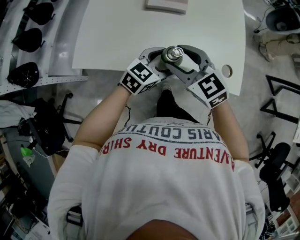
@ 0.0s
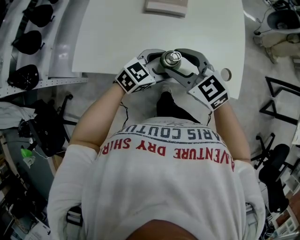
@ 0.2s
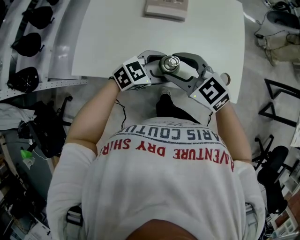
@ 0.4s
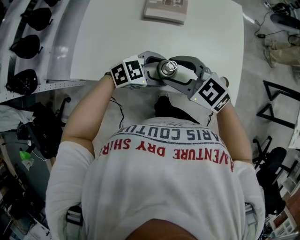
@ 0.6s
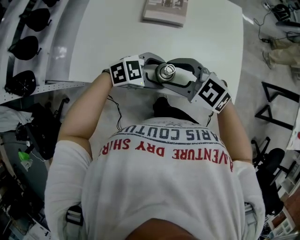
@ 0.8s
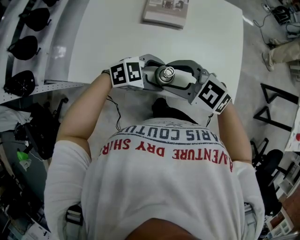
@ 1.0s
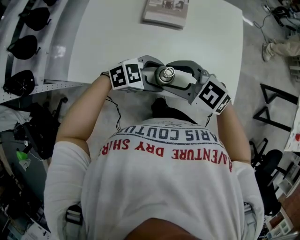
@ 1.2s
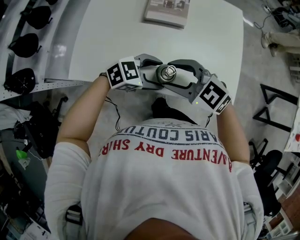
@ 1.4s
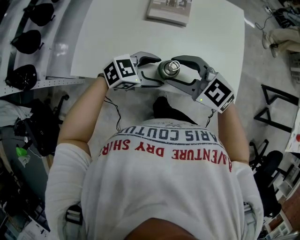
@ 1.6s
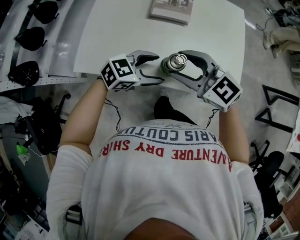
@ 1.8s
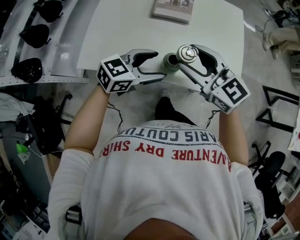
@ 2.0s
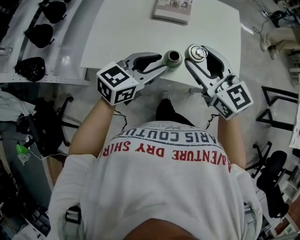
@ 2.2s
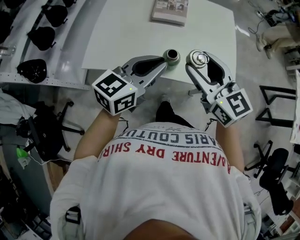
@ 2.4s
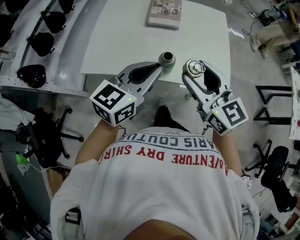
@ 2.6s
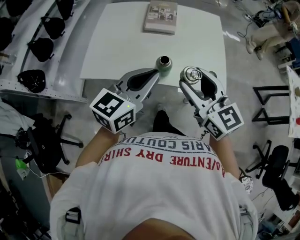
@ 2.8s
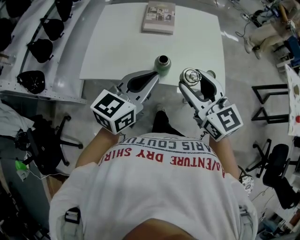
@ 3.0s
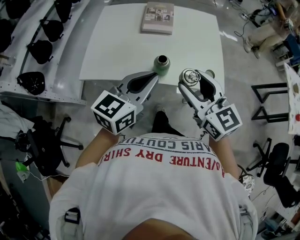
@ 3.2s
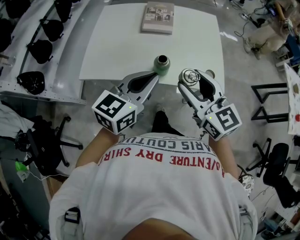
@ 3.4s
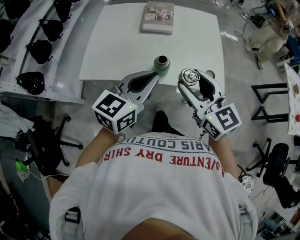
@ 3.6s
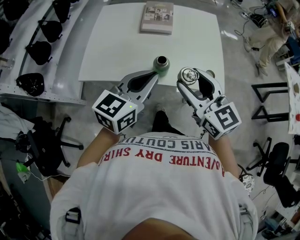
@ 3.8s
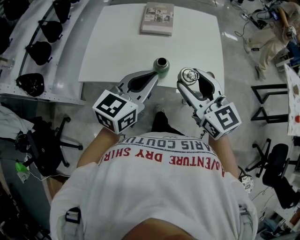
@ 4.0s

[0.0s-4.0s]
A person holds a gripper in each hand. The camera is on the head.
0.0s to 1.4s: The left gripper rotates some 30 degrees. Meanwhile the right gripper rotates approximately 20 degrees.
1.4s to 2.6s: The two grippers go roughly 15 cm upward. The right gripper turns by about 40 degrees. The left gripper turns by roughly 50 degrees, and closes up.
2.6s to 4.0s: The grippers make only small movements.

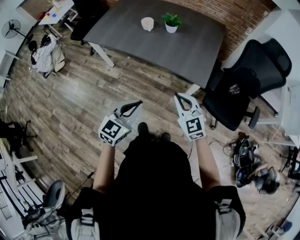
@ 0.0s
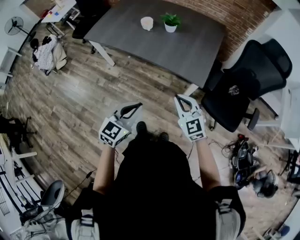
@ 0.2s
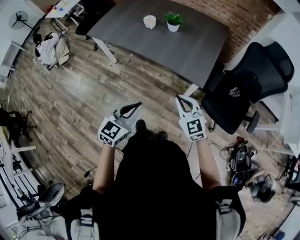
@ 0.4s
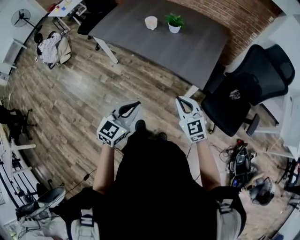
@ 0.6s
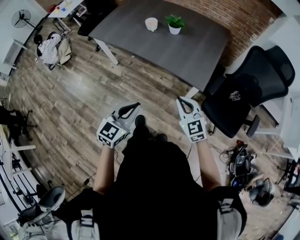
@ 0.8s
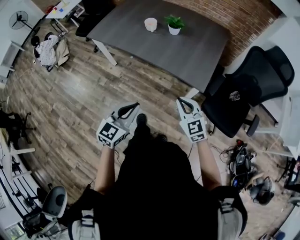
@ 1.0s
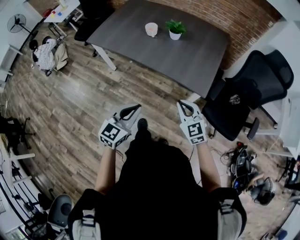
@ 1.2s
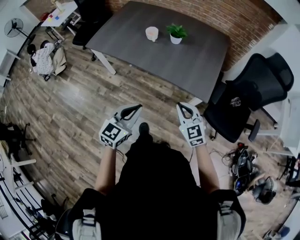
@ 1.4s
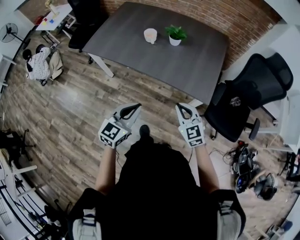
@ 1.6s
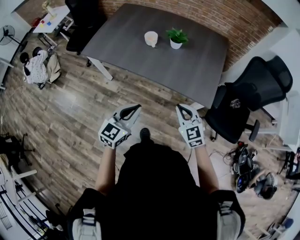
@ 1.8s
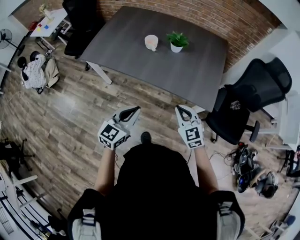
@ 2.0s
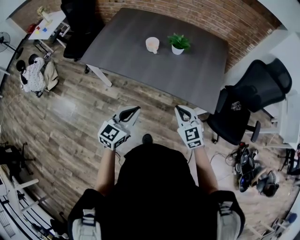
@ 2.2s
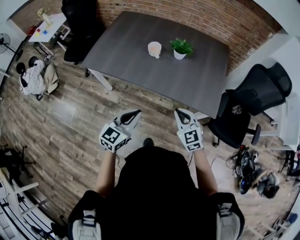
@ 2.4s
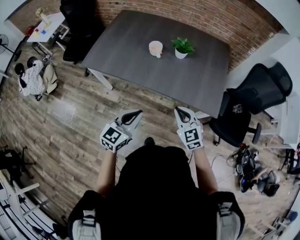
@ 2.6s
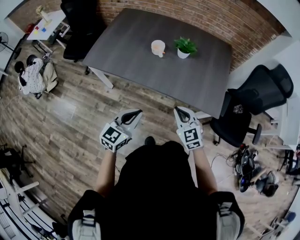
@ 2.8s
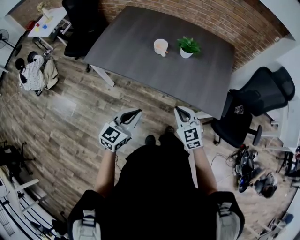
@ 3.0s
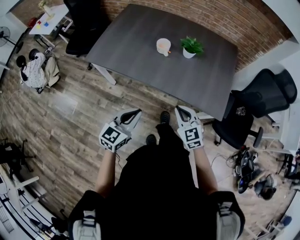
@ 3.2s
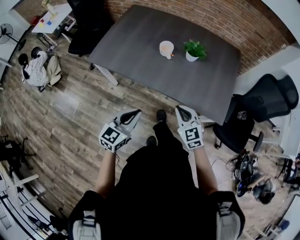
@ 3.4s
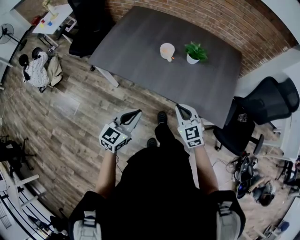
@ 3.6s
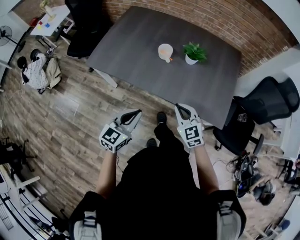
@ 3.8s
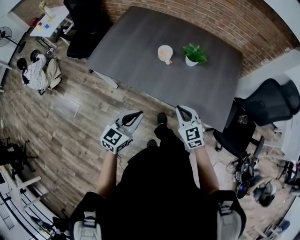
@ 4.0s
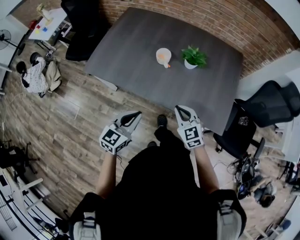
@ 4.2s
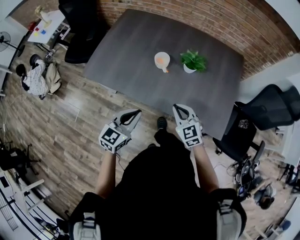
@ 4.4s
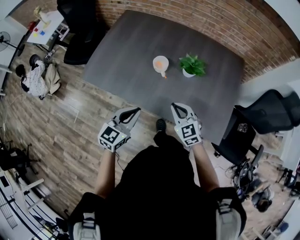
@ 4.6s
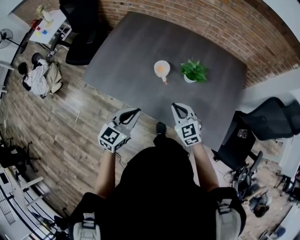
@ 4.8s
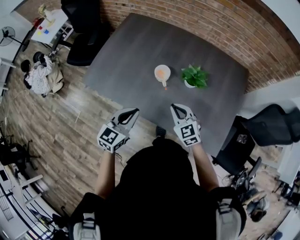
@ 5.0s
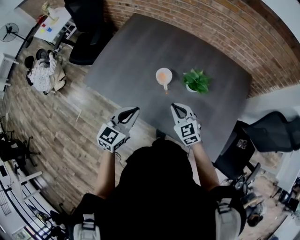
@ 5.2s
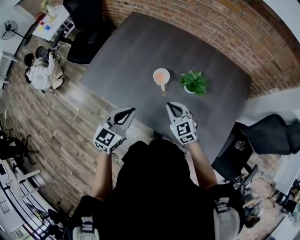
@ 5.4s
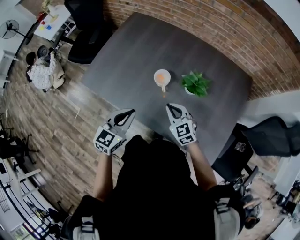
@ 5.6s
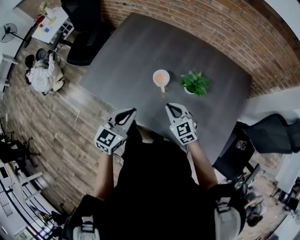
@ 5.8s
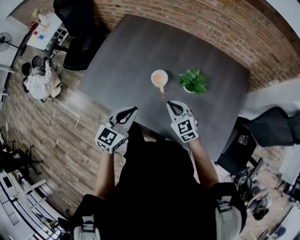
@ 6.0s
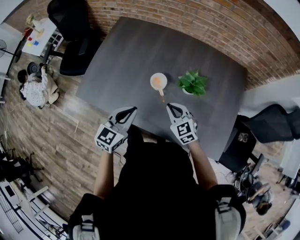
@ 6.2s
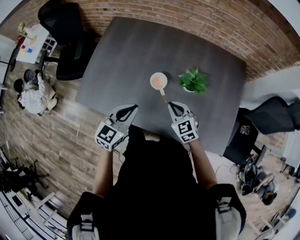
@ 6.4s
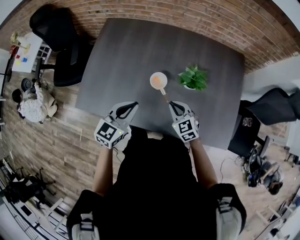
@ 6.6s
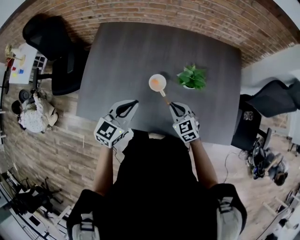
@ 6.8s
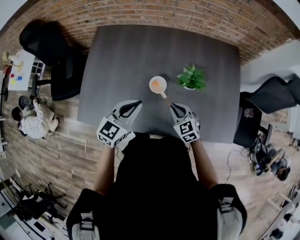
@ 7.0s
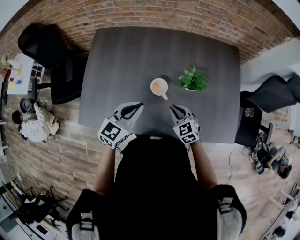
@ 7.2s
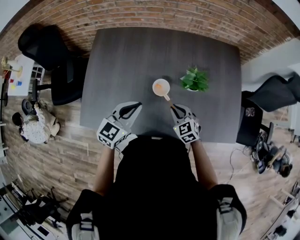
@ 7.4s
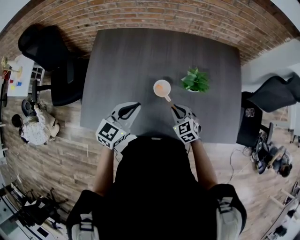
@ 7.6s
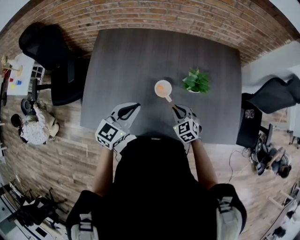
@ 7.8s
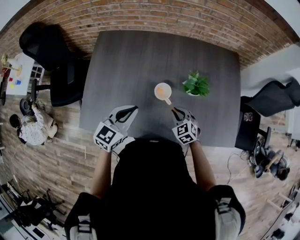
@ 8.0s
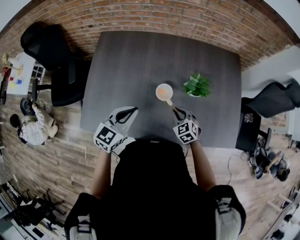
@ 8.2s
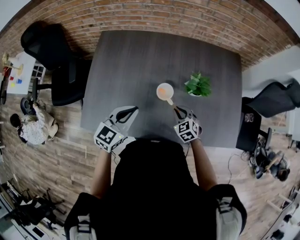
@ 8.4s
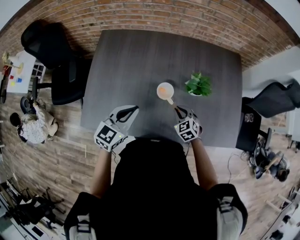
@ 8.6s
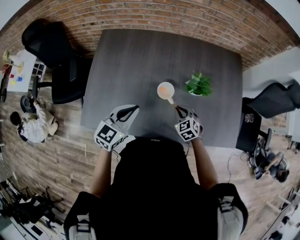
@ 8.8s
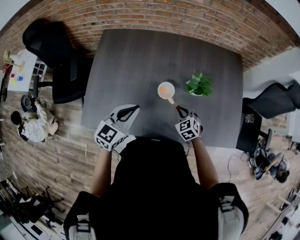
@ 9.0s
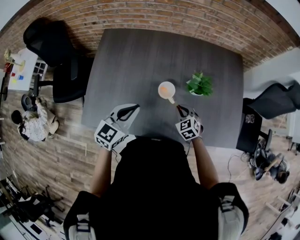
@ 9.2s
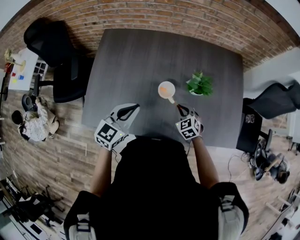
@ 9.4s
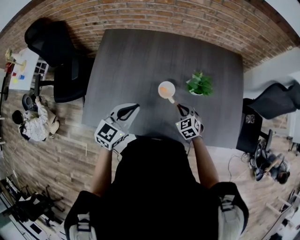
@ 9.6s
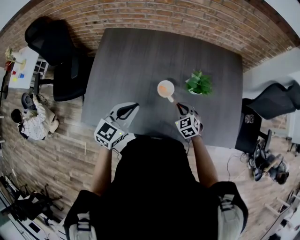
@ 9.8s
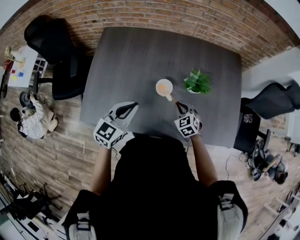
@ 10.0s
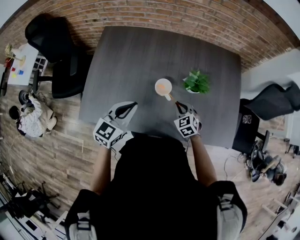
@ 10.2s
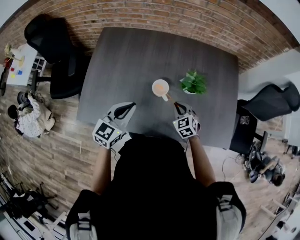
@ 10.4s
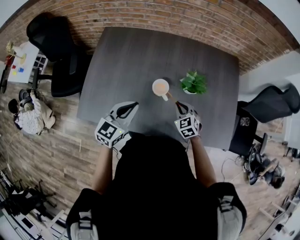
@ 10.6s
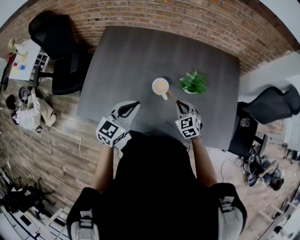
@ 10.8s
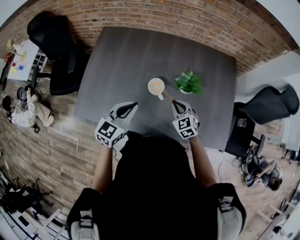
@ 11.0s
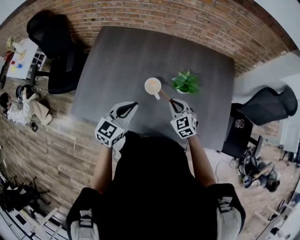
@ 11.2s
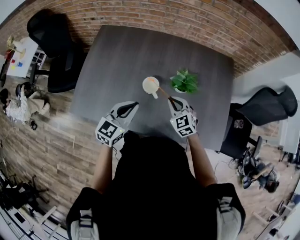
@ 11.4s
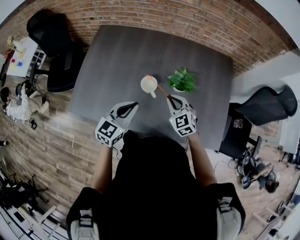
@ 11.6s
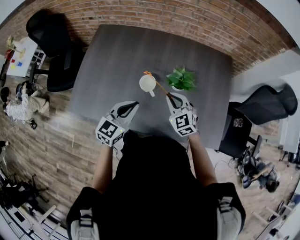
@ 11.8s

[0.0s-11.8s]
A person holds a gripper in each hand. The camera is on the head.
0.0s to 1.4s: The right gripper shifts by about 5 cm. The left gripper is displaced forward by roughly 5 cm.
1.4s to 3.0s: The two grippers go approximately 20 cm to the left and forward.
3.0s to 4.4s: Both grippers travel together forward, approximately 15 cm.
4.4s to 6.0s: The grippers both shift forward by roughly 15 cm.
6.0s to 7.4s: The right gripper changes place by about 5 cm, and rotates some 20 degrees; the left gripper goes approximately 15 cm forward and to the left, and rotates about 20 degrees.
7.4s to 10.4s: The grippers stay close to where they were, moving slightly.
10.4s to 11.8s: The left gripper shifts roughly 10 cm to the right; the right gripper shifts some 10 cm upward.

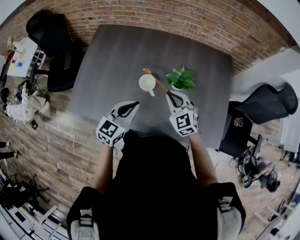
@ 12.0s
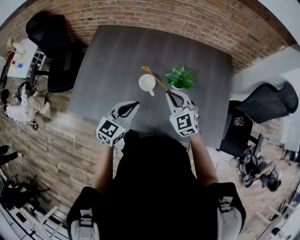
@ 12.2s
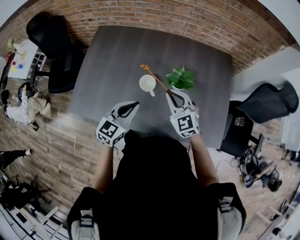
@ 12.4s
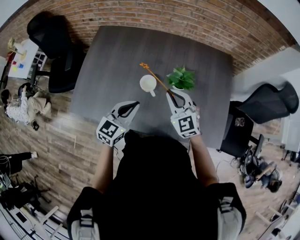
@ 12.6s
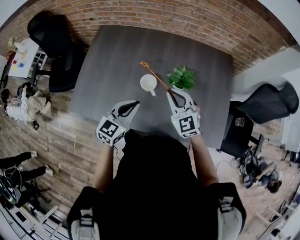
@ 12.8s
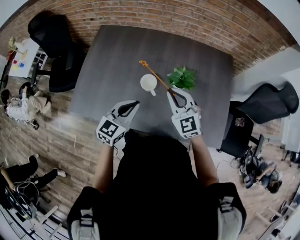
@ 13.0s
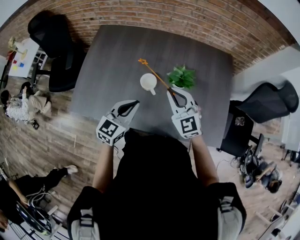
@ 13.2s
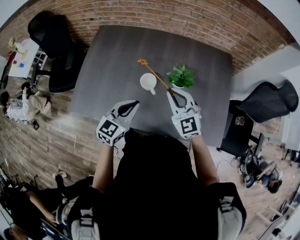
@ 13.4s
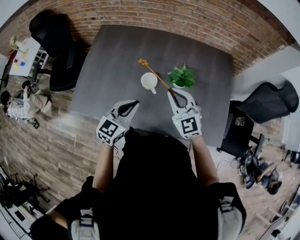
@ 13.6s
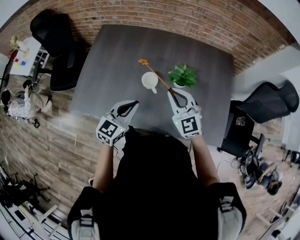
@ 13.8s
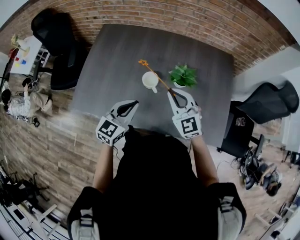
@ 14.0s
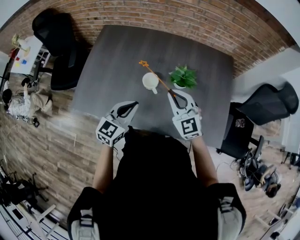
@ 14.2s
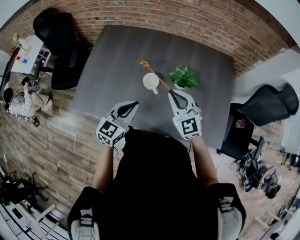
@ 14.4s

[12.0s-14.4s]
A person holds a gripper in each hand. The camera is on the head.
12.0s to 13.2s: The right gripper moves upward, roughly 5 cm.
13.2s to 14.4s: There are only small adjustments of the grippers.

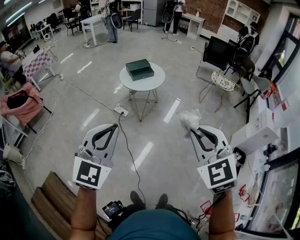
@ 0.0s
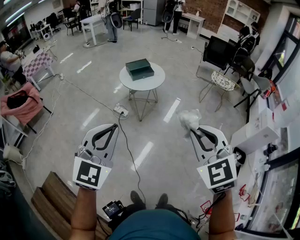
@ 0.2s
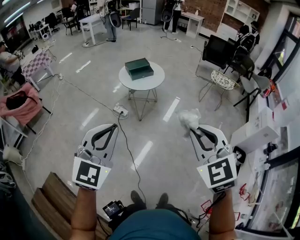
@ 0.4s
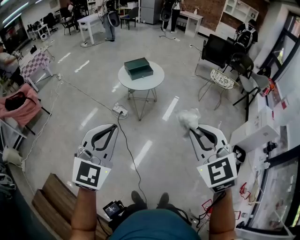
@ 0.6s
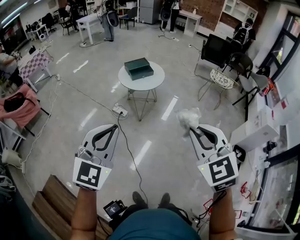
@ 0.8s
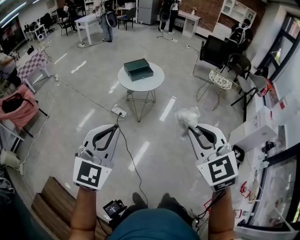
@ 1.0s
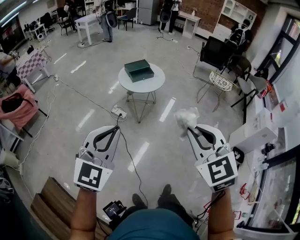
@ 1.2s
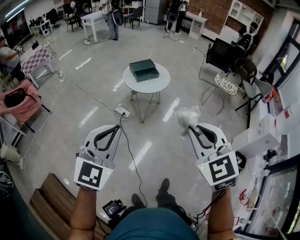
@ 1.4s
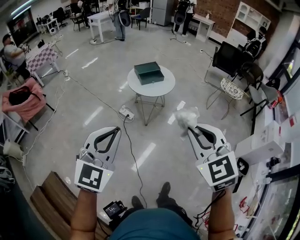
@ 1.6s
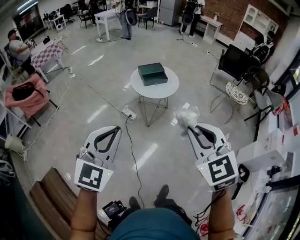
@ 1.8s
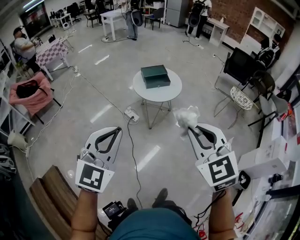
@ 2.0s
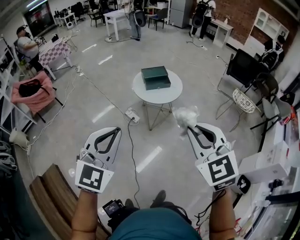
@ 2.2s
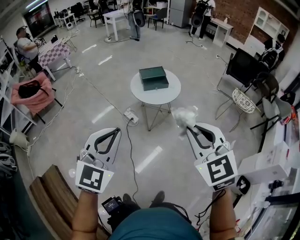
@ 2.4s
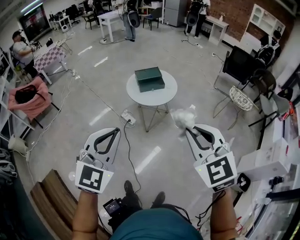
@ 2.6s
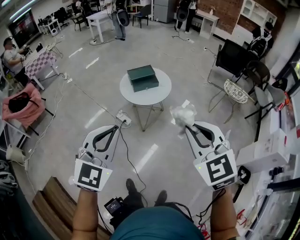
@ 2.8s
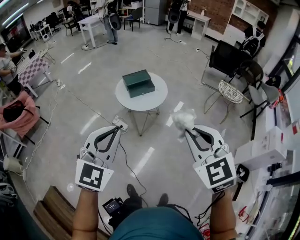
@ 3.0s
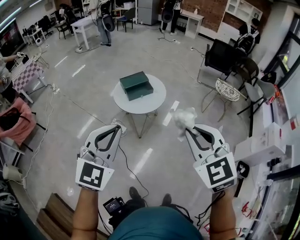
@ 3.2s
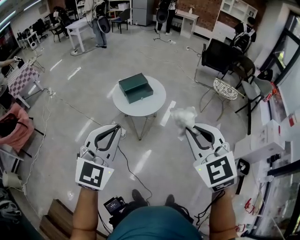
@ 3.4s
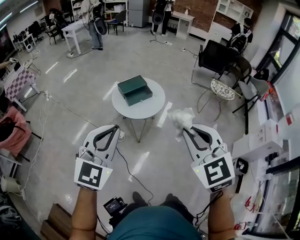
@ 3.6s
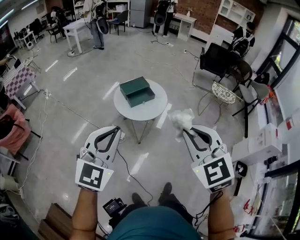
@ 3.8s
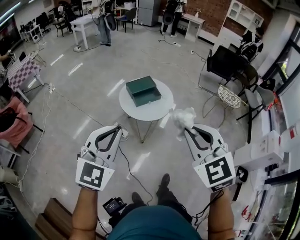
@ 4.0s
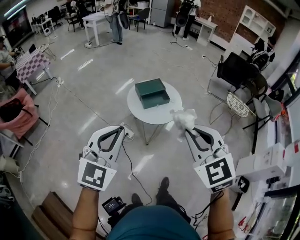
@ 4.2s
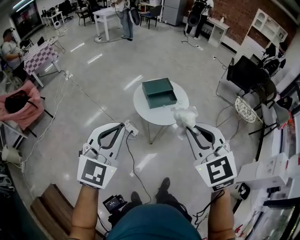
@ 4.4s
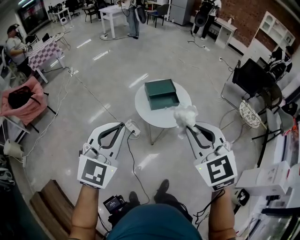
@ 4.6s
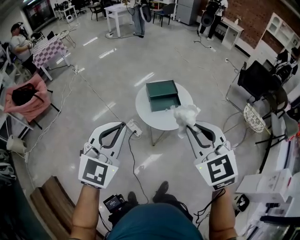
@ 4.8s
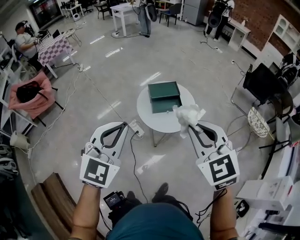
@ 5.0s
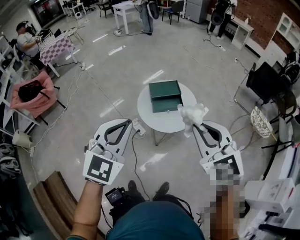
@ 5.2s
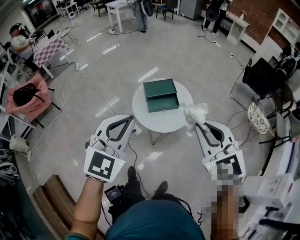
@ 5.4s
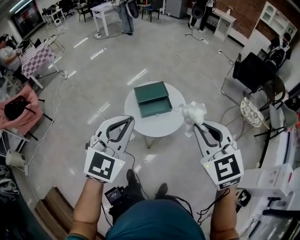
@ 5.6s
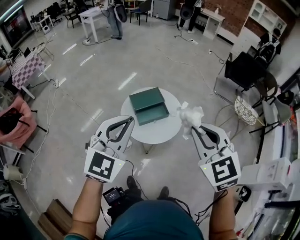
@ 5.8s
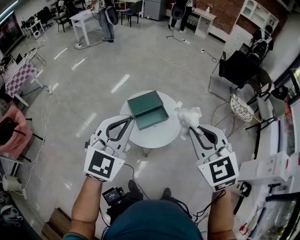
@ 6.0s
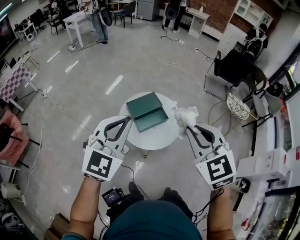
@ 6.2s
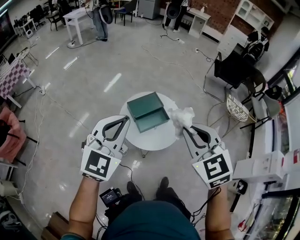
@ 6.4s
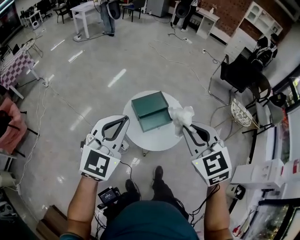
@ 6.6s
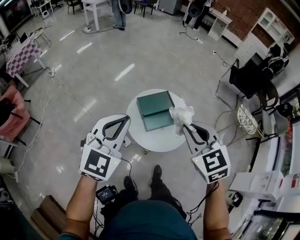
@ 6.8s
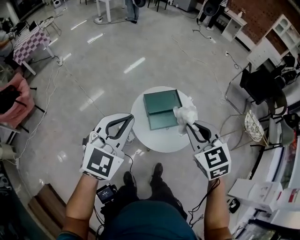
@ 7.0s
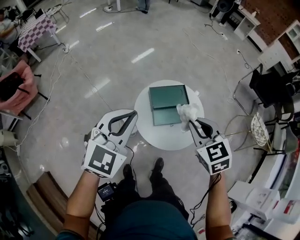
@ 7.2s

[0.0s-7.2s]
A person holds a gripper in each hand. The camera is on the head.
0.0s to 1.4s: Both grippers travel together to the left and forward, approximately 15 cm.
1.4s to 2.8s: The two grippers go about 30 cm forward and to the right.
2.8s to 4.4s: Both grippers move forward and to the left, approximately 35 cm.
4.4s to 5.8s: Both grippers move forward, approximately 30 cm.
5.8s to 7.2s: The right gripper shifts some 40 cm forward, downward and to the left. The left gripper shifts approximately 30 cm forward, to the left and downward.
